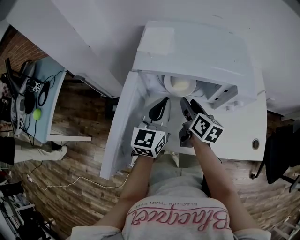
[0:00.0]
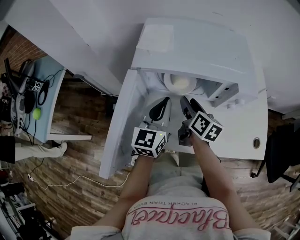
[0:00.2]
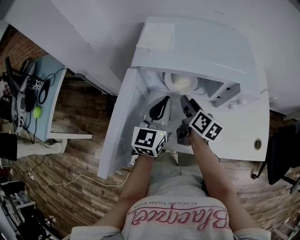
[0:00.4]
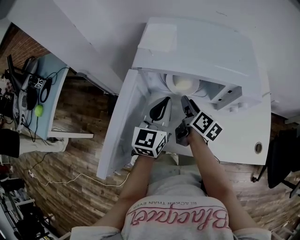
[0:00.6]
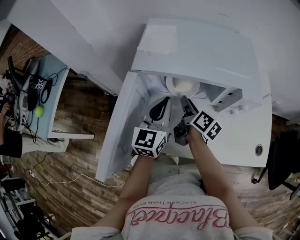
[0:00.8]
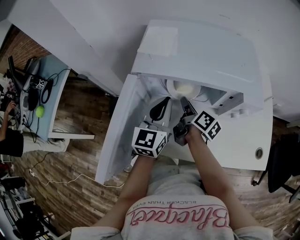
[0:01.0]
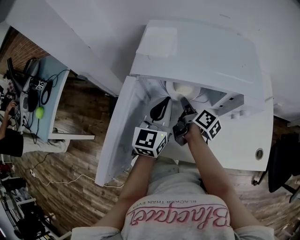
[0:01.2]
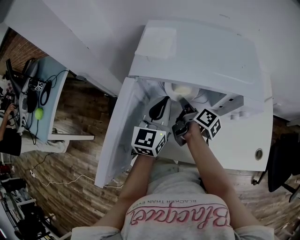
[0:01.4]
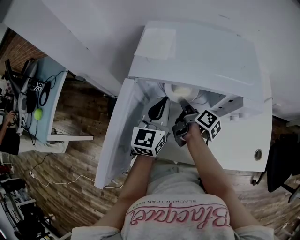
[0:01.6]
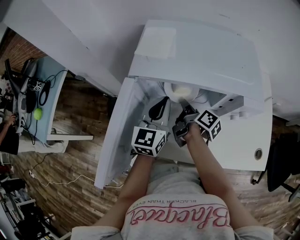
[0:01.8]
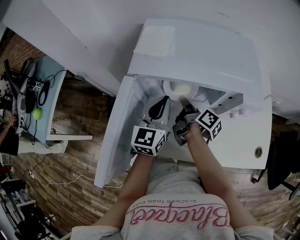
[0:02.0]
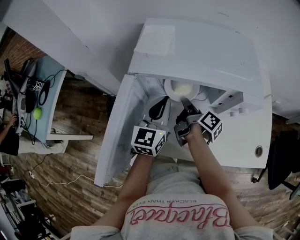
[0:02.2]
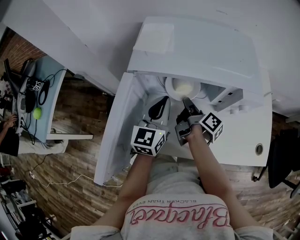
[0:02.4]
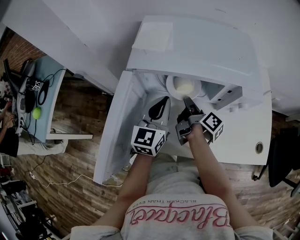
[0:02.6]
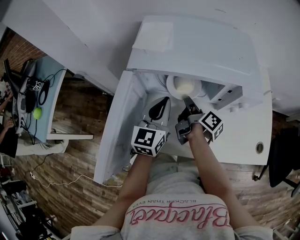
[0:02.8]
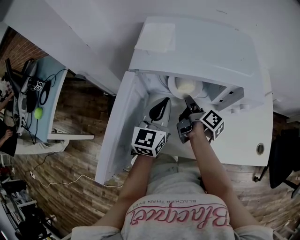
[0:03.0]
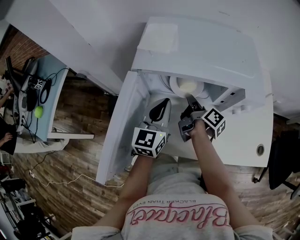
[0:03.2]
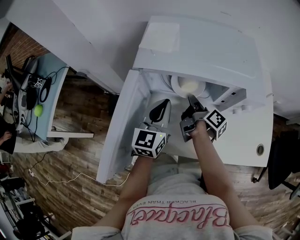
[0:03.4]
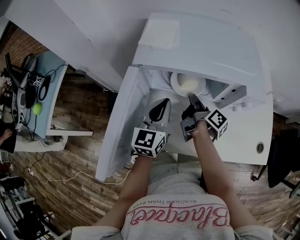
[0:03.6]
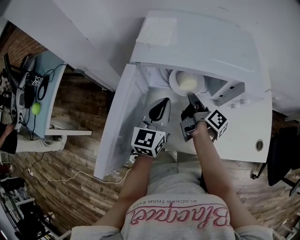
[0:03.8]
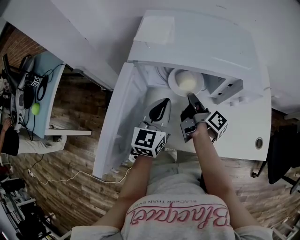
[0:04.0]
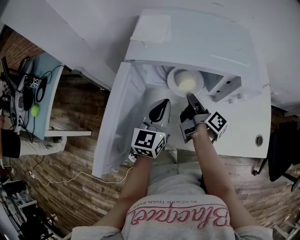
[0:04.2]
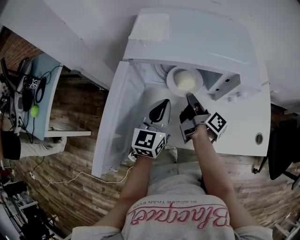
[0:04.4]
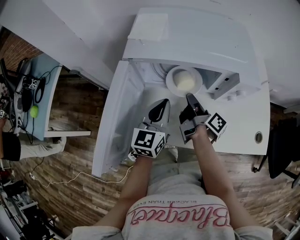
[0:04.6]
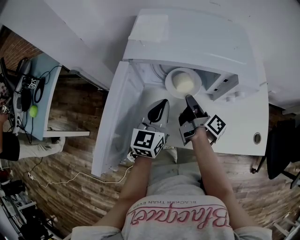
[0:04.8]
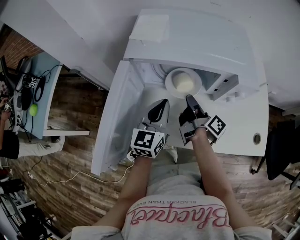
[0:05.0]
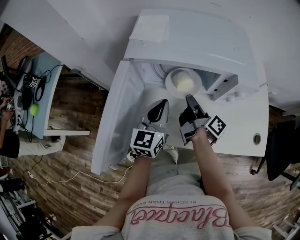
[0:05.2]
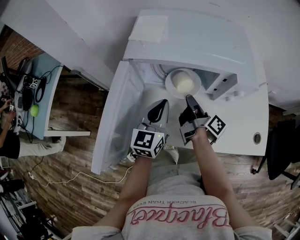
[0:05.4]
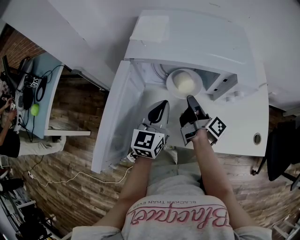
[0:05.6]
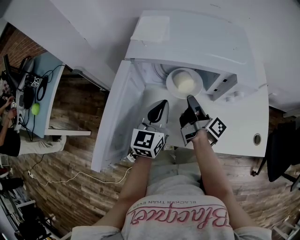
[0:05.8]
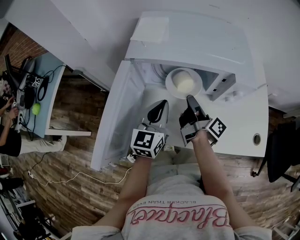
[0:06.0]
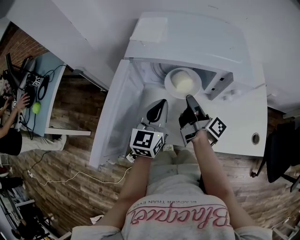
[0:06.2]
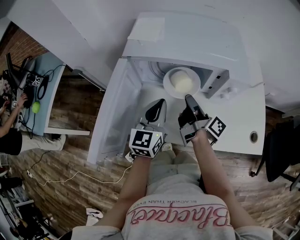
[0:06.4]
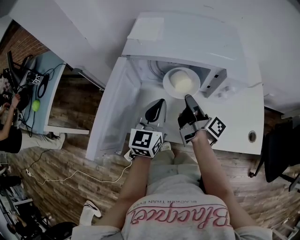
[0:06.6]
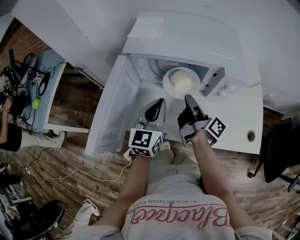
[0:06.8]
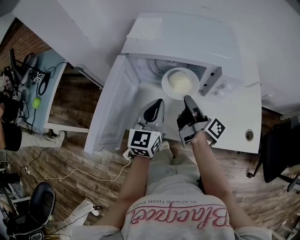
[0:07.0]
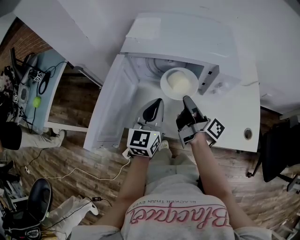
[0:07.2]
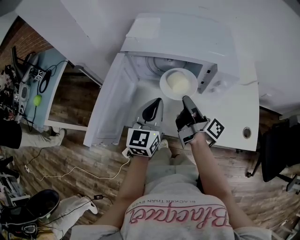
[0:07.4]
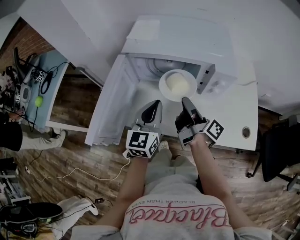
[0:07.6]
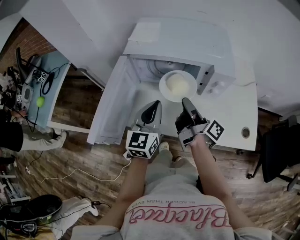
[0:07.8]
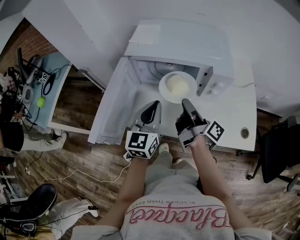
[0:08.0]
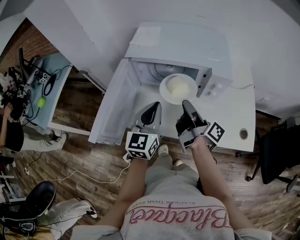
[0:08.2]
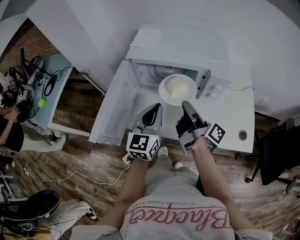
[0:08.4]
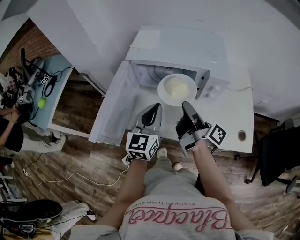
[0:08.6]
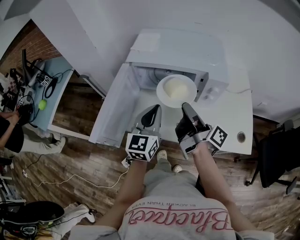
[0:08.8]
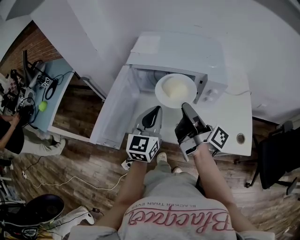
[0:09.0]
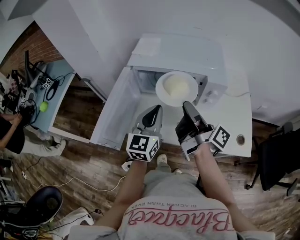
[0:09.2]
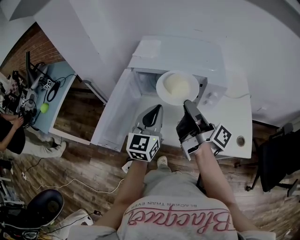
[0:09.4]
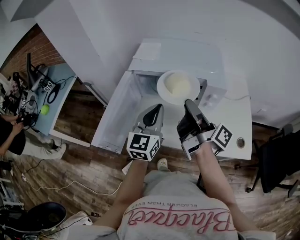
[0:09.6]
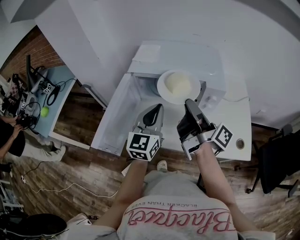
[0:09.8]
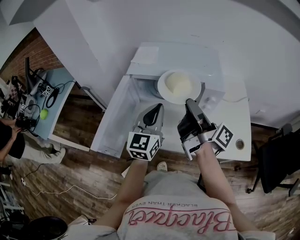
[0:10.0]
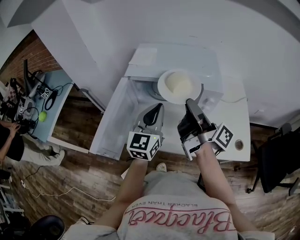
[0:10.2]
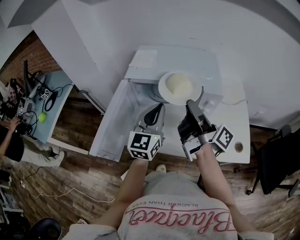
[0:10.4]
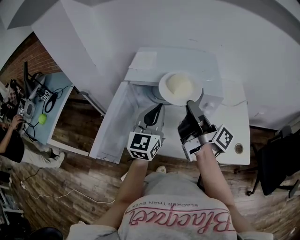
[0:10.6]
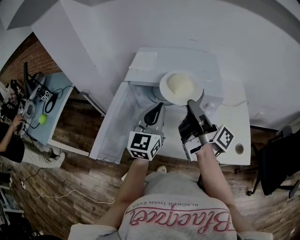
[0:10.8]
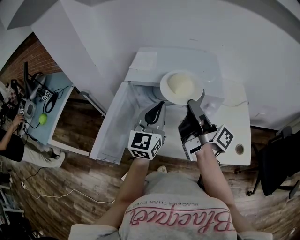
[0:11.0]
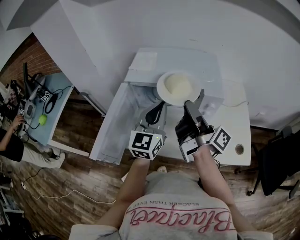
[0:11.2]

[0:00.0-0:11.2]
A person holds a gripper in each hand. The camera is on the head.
0:00.0 to 0:01.6: The right gripper heads downward, covering approximately 5 cm, twists about 40 degrees clockwise, seen from behind, and closes up.
0:01.6 to 0:03.2: There are only small adjustments of the grippers.
0:03.2 to 0:04.8: The right gripper shifts some 5 cm backward.
0:04.8 to 0:06.4: The grippers move only a little.
0:06.4 to 0:08.0: Both grippers travel together backward and upward, roughly 10 cm.
0:08.0 to 0:09.6: The left gripper moves some 5 cm. The right gripper is displaced upward by approximately 10 cm.
0:09.6 to 0:11.2: The left gripper ends up roughly 5 cm from where it was.

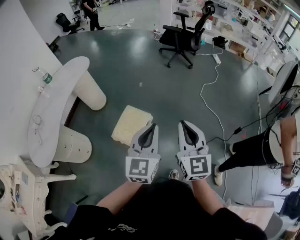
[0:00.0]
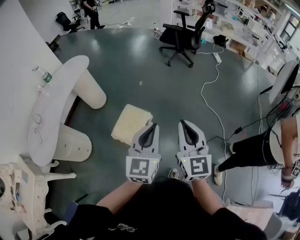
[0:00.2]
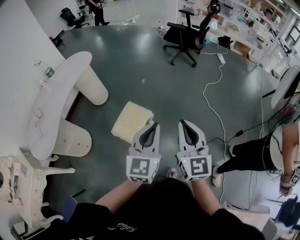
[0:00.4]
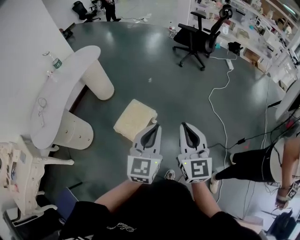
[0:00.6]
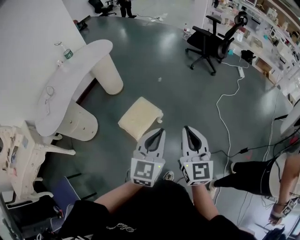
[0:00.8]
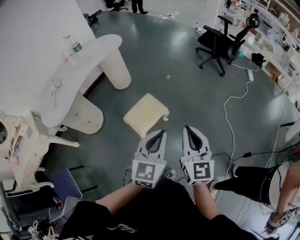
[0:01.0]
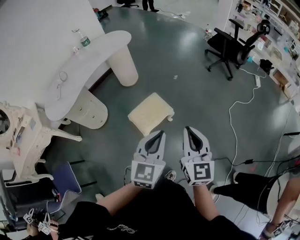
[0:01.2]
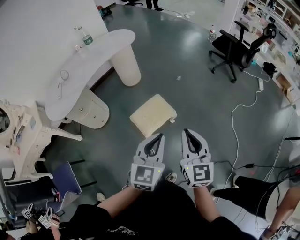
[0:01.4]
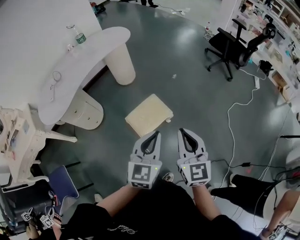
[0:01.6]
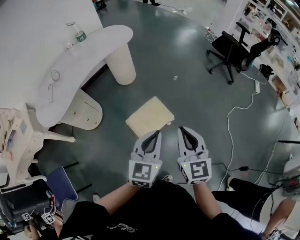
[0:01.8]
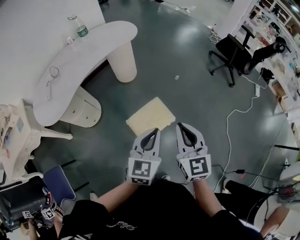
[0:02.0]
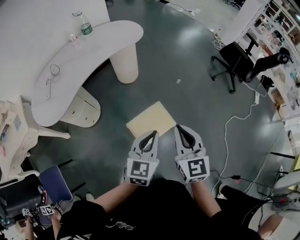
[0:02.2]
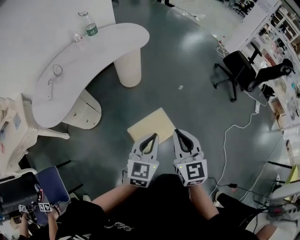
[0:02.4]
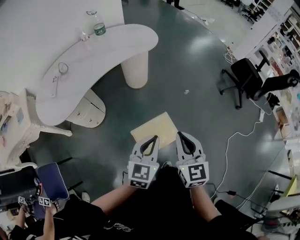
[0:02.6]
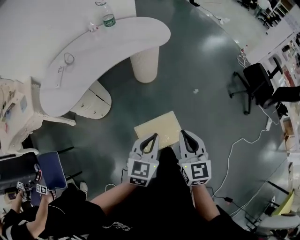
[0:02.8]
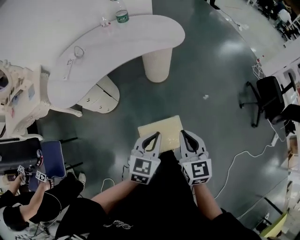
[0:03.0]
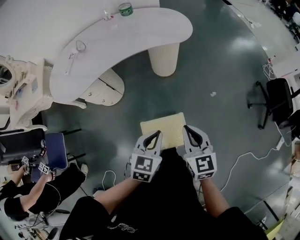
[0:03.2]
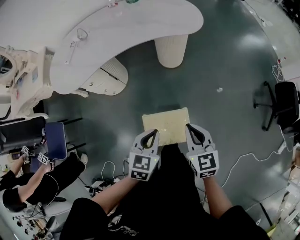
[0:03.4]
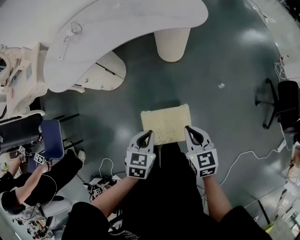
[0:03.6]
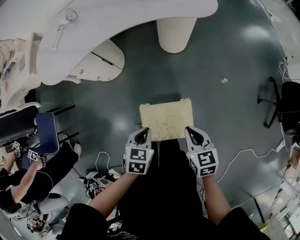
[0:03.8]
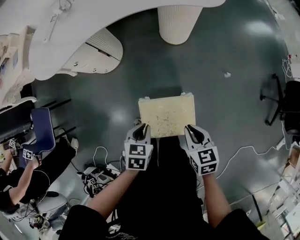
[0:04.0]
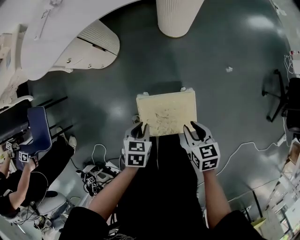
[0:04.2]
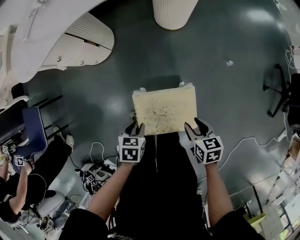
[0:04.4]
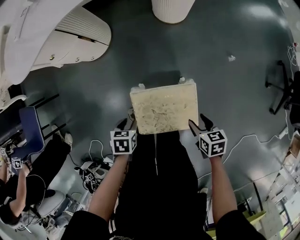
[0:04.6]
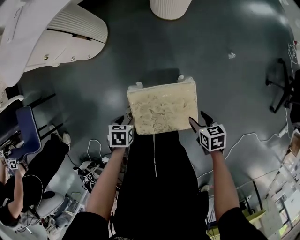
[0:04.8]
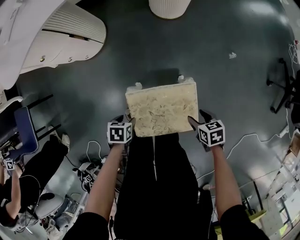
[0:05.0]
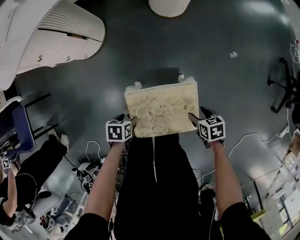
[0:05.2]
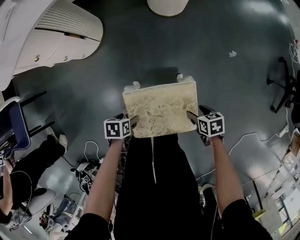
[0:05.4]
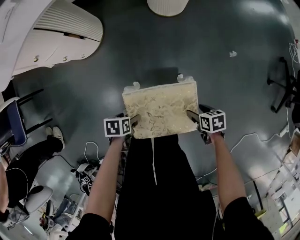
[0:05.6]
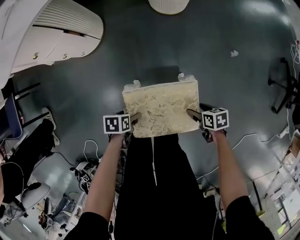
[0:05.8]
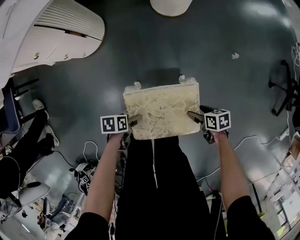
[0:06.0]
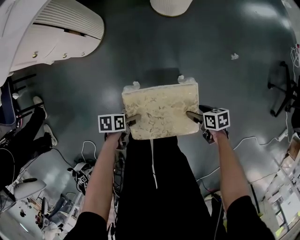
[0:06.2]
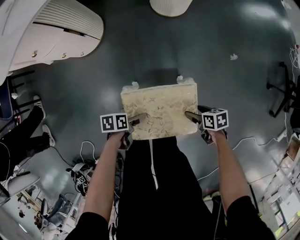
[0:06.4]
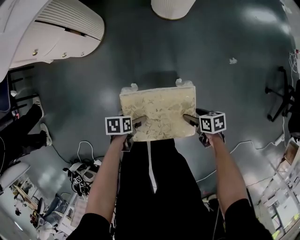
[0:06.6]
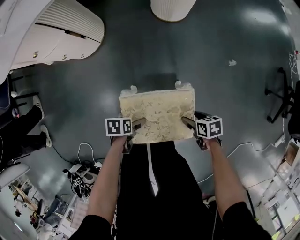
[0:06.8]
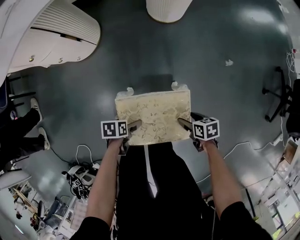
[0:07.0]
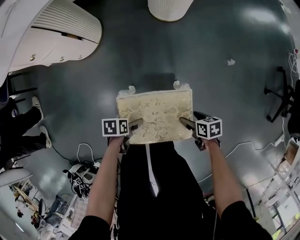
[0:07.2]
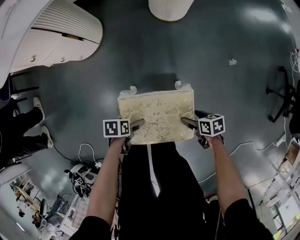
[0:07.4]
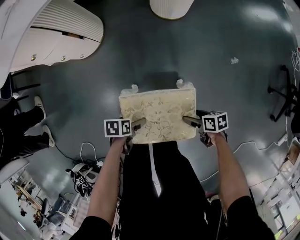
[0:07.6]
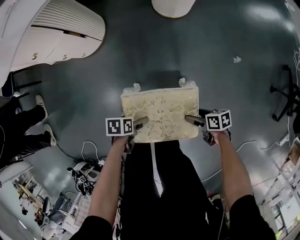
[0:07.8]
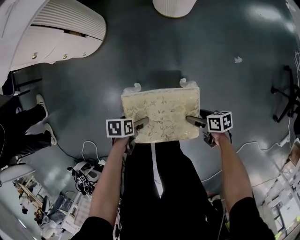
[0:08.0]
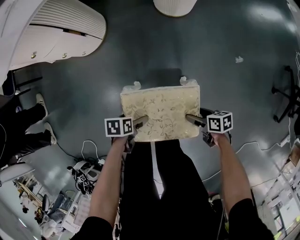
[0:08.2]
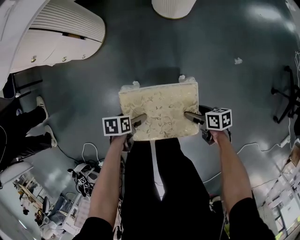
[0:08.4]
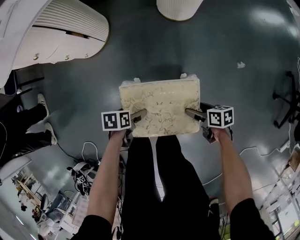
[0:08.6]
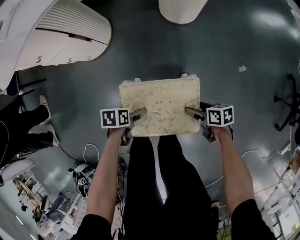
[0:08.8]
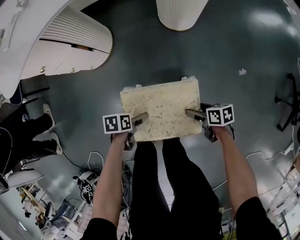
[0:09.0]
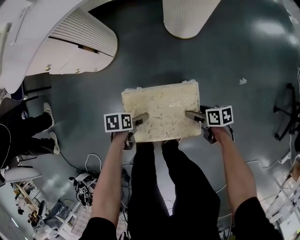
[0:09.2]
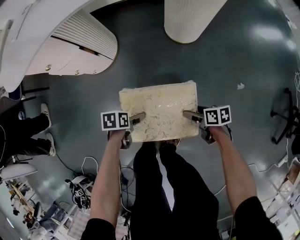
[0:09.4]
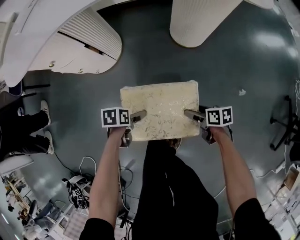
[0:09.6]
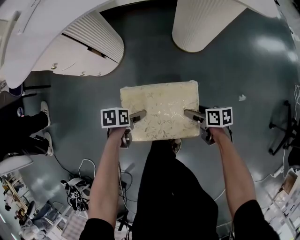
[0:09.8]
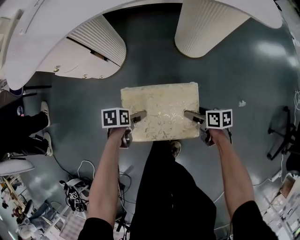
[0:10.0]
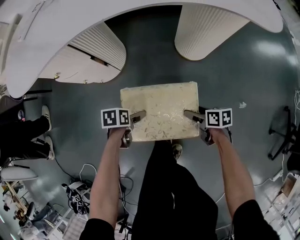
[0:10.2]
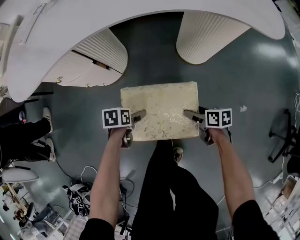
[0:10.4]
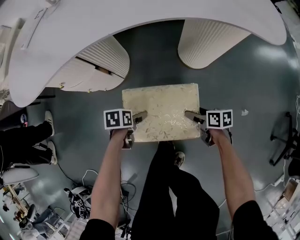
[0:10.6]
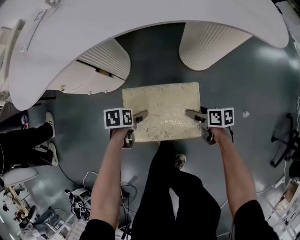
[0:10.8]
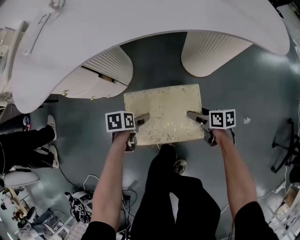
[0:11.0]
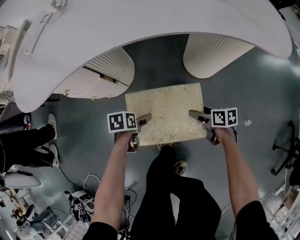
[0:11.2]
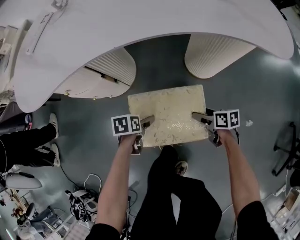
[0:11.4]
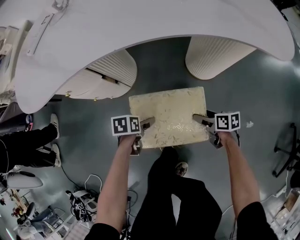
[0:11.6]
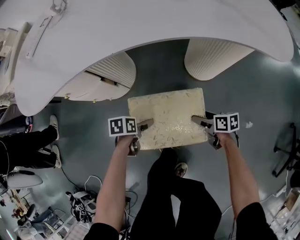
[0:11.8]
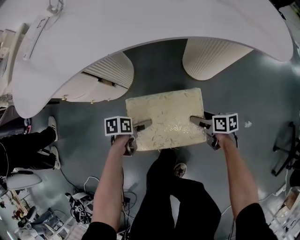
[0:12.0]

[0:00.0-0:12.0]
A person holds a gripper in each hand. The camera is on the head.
0:00.0 to 0:01.6: The left gripper shifts about 10 cm downward and to the left, and changes its angle by about 20 degrees, while the right gripper moves forward, to the left and downward, roughly 10 cm, and rotates roughly 30 degrees.
0:01.6 to 0:03.0: The two grippers go about 30 cm forward and to the left. The right gripper turns by about 30 degrees. The left gripper turns by roughly 20 degrees.
0:03.0 to 0:04.4: Both grippers travel together downward, some 40 cm. The left gripper tilts its fingers some 40 degrees downward. The right gripper angles its fingers downward, by roughly 30 degrees, and opens up.
0:04.4 to 0:06.0: The grippers both shift downward by about 20 cm. The left gripper changes its angle by some 30 degrees, and opens; the right gripper turns by about 20 degrees, and opens its fingers.
0:06.0 to 0:10.4: There are only small adjustments of the grippers.
0:10.4 to 0:12.0: The grippers make only small movements.

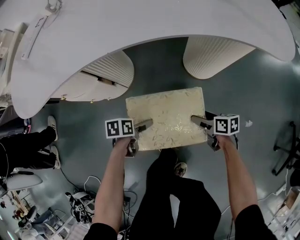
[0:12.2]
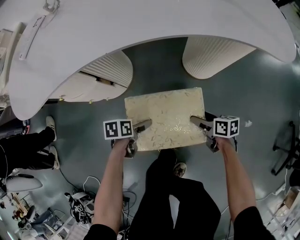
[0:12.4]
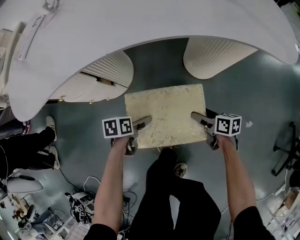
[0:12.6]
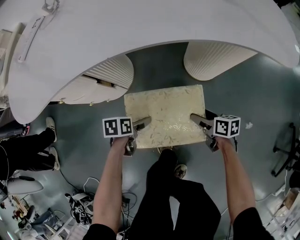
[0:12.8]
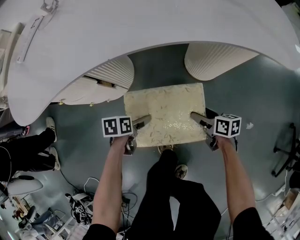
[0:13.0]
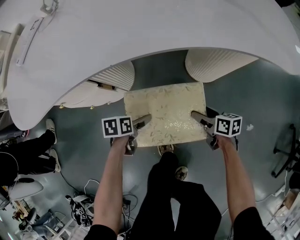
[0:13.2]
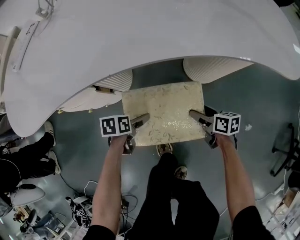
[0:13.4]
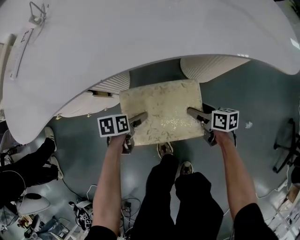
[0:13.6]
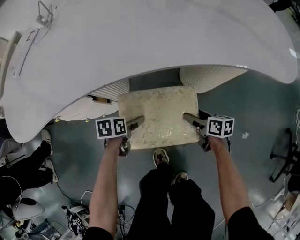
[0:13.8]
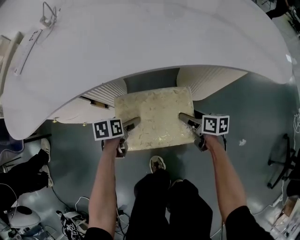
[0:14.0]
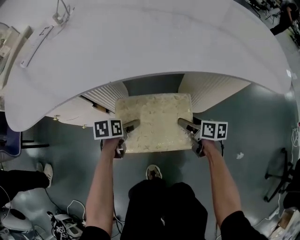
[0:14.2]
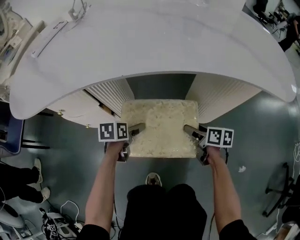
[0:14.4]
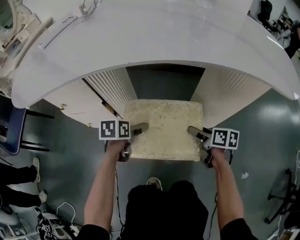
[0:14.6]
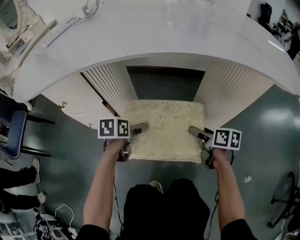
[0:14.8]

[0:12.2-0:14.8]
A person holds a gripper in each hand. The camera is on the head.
0:12.2 to 0:13.4: There are only small adjustments of the grippers.
0:13.4 to 0:14.8: The grippers move only a little.
